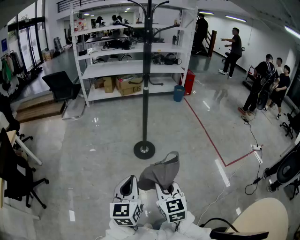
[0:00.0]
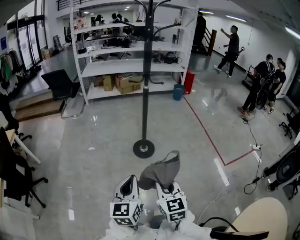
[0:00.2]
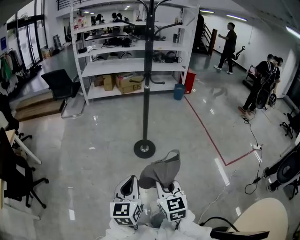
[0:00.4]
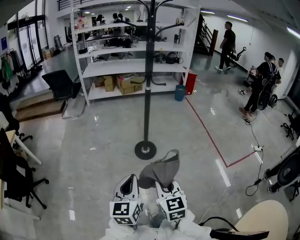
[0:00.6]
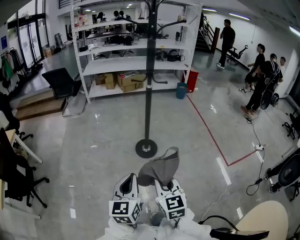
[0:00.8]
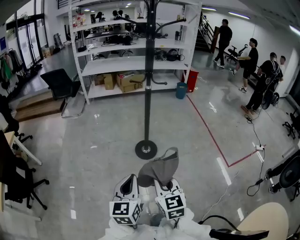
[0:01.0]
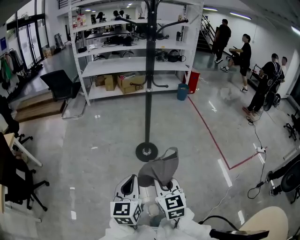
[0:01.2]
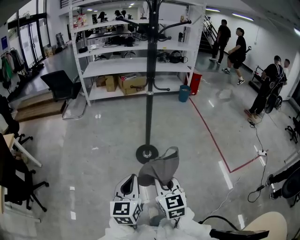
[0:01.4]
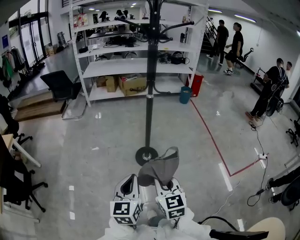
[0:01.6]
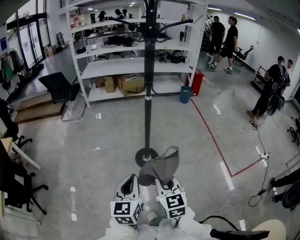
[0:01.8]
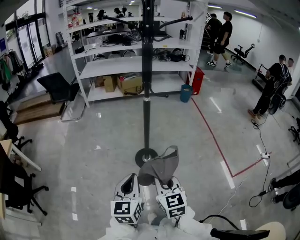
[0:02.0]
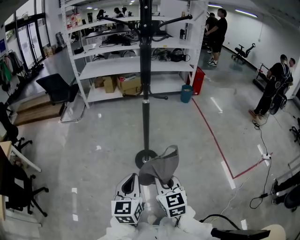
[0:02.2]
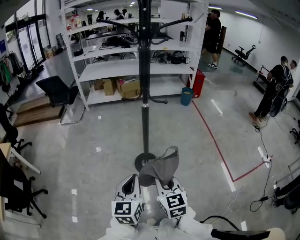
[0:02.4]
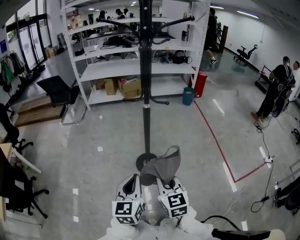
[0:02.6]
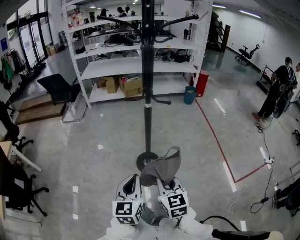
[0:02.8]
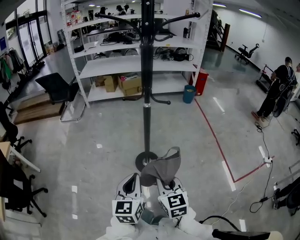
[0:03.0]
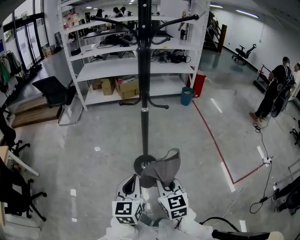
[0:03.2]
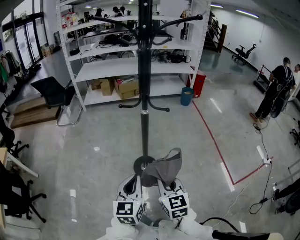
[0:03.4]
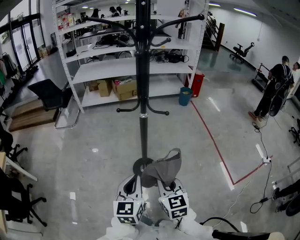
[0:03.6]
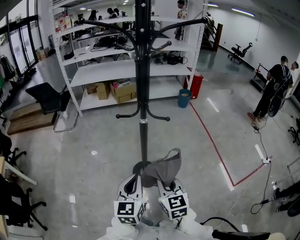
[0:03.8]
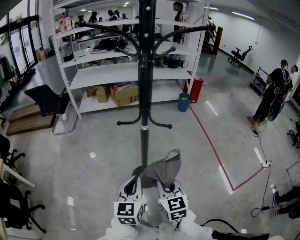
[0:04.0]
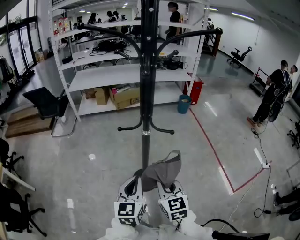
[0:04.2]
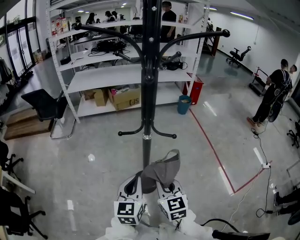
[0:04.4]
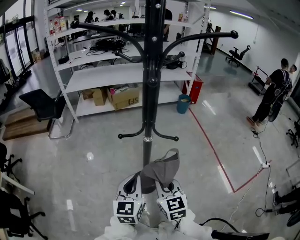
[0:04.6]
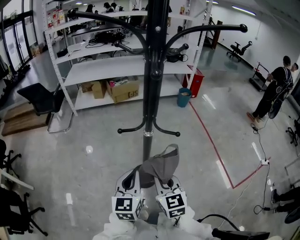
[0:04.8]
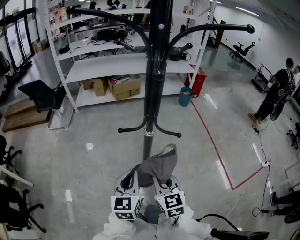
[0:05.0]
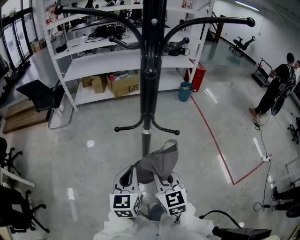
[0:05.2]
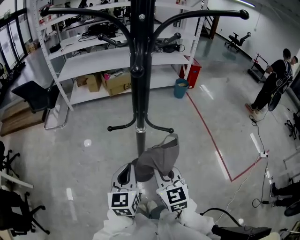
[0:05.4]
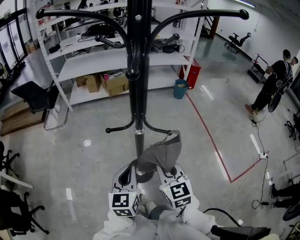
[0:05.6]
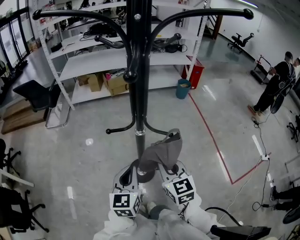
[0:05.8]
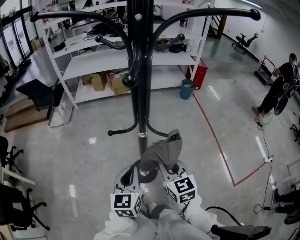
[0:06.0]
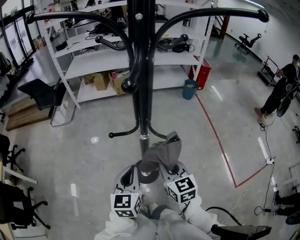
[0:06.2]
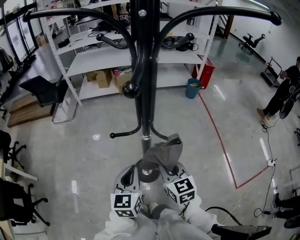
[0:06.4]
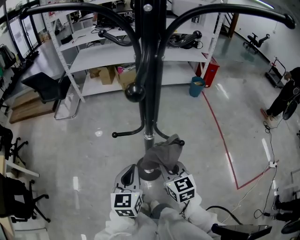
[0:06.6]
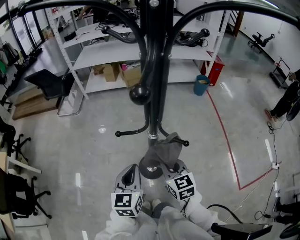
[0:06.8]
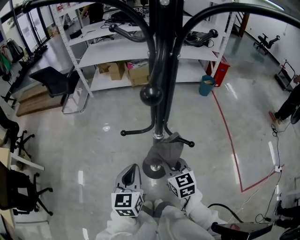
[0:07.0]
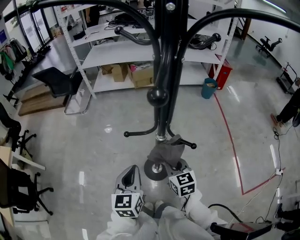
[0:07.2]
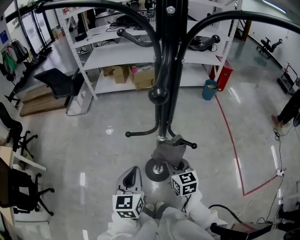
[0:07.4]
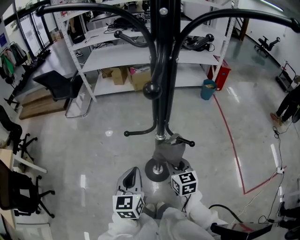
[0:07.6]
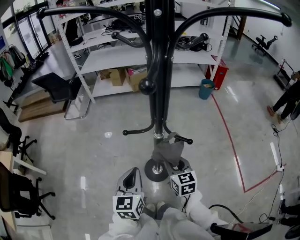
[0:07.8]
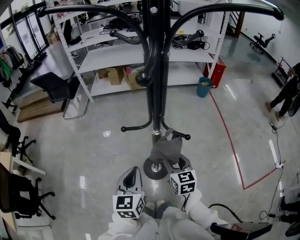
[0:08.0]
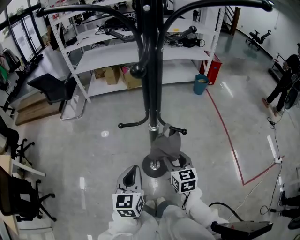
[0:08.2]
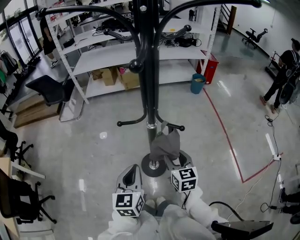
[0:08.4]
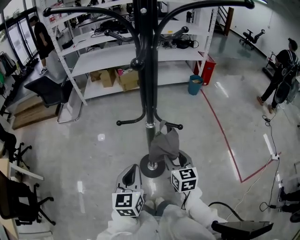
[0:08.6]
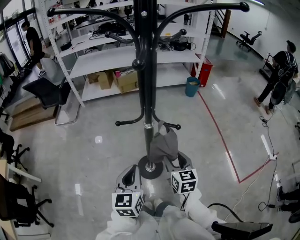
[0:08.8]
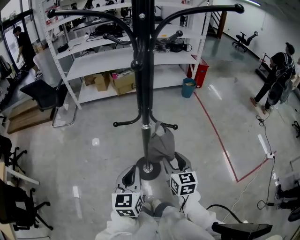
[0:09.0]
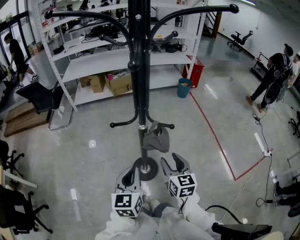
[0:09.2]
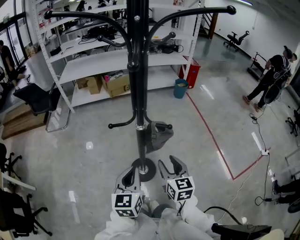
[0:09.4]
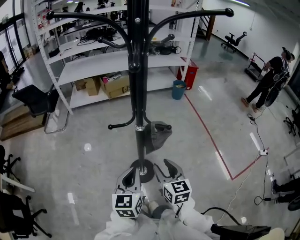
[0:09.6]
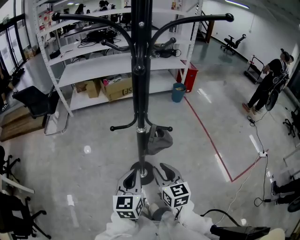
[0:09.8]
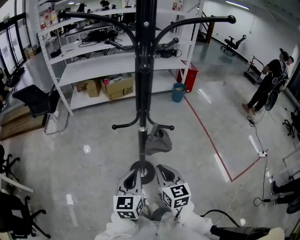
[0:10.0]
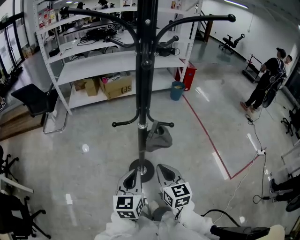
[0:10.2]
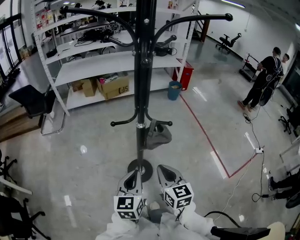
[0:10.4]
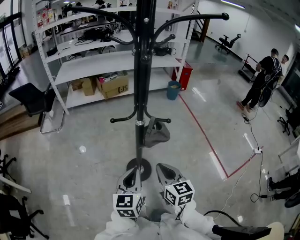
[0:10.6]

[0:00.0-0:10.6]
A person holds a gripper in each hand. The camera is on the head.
0:00.0 to 0:01.6: The grippers both shift forward by about 15 cm.
0:01.6 to 0:03.0: The two grippers go about 15 cm forward.
0:03.0 to 0:04.6: Both grippers move forward, some 20 cm.
0:04.6 to 0:06.0: The right gripper travels forward by some 5 cm, while the left gripper changes place by approximately 5 cm.
0:06.0 to 0:07.6: The left gripper moves approximately 5 cm. Meanwhile the right gripper goes approximately 10 cm downward.
0:07.6 to 0:09.0: The right gripper travels backward by approximately 5 cm, and opens its fingers. Meanwhile the left gripper changes place by about 5 cm.
0:09.0 to 0:10.6: The right gripper shifts about 10 cm backward, and closes up.

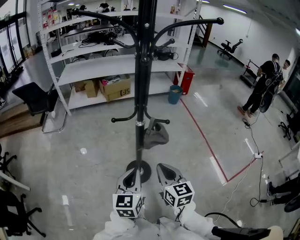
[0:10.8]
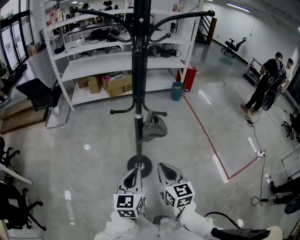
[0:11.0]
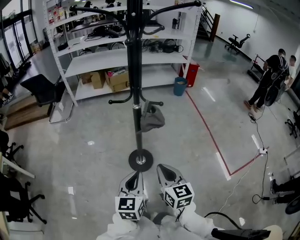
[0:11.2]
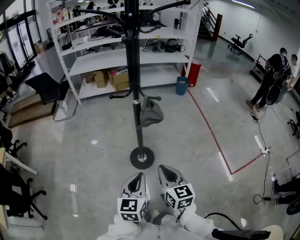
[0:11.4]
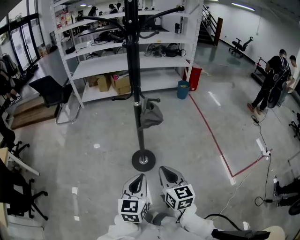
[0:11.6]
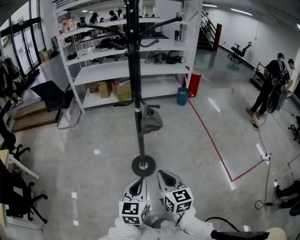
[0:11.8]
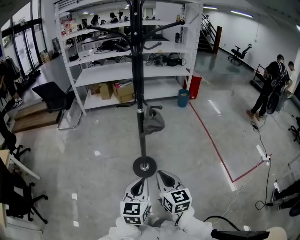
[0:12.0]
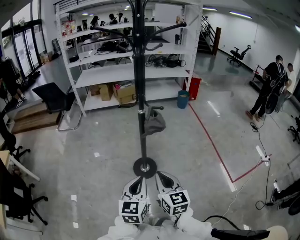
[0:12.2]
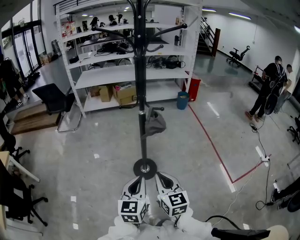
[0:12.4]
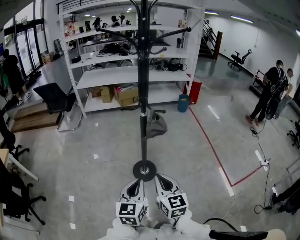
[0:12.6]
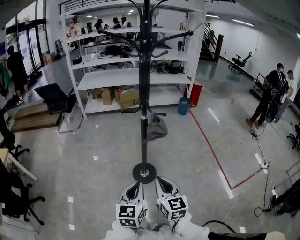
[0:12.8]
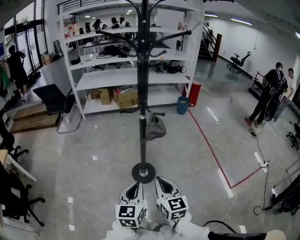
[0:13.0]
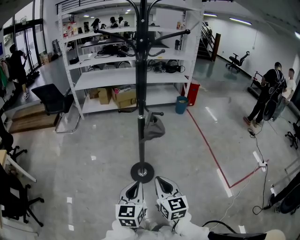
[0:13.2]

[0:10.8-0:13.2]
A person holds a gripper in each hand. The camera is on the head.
0:10.8 to 0:12.0: Both grippers move backward, some 15 cm.
0:12.0 to 0:13.2: There are only small adjustments of the grippers.

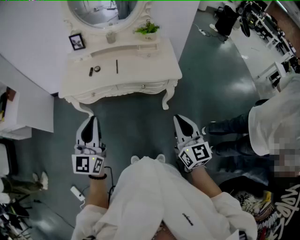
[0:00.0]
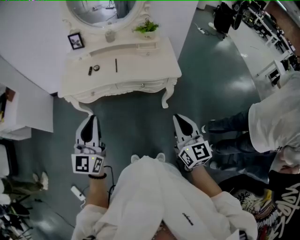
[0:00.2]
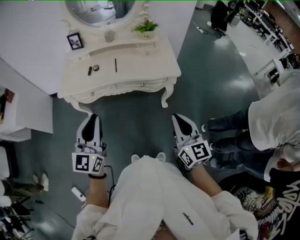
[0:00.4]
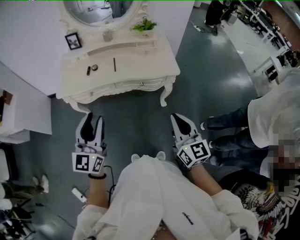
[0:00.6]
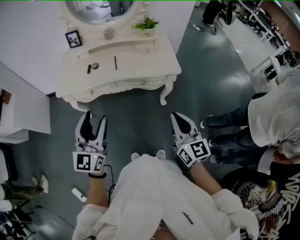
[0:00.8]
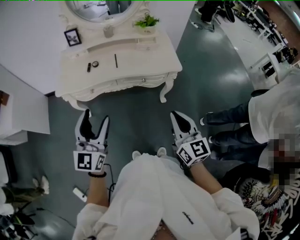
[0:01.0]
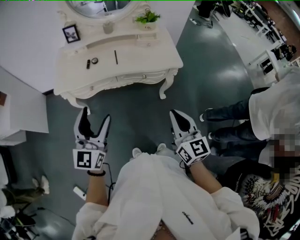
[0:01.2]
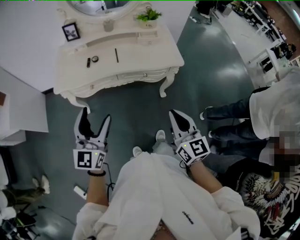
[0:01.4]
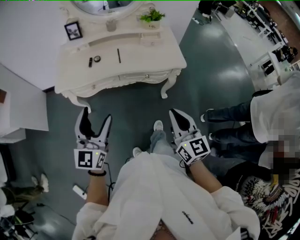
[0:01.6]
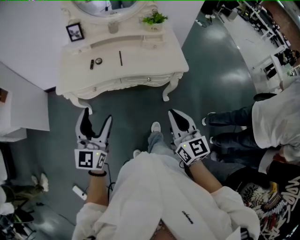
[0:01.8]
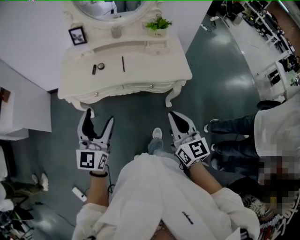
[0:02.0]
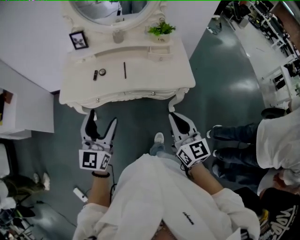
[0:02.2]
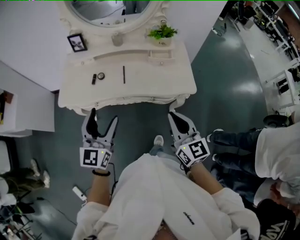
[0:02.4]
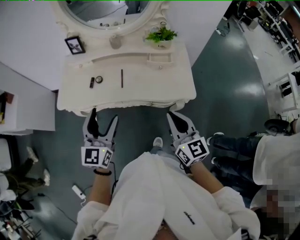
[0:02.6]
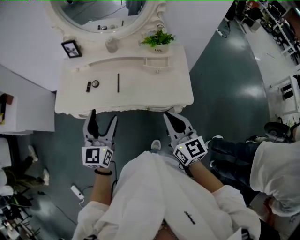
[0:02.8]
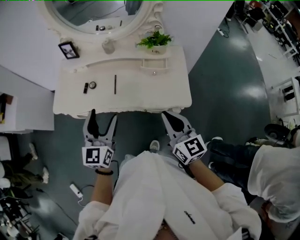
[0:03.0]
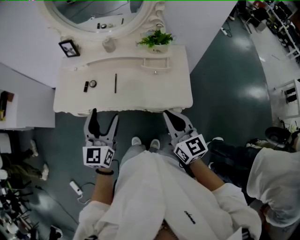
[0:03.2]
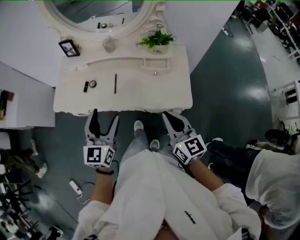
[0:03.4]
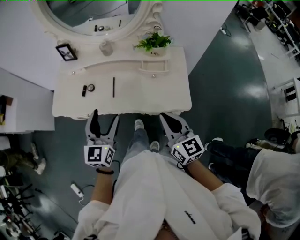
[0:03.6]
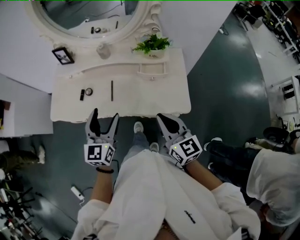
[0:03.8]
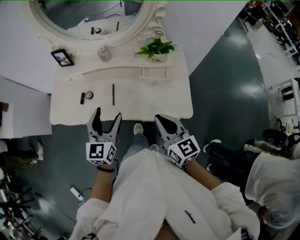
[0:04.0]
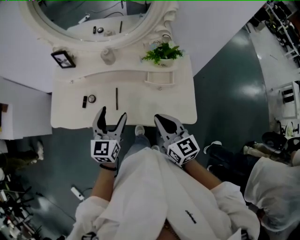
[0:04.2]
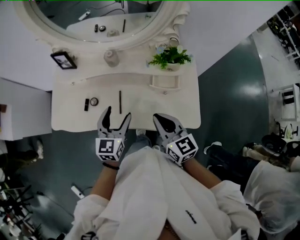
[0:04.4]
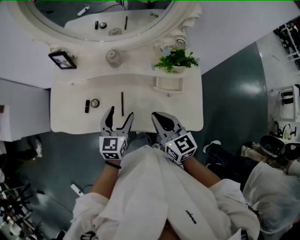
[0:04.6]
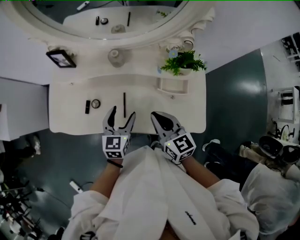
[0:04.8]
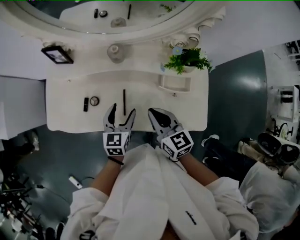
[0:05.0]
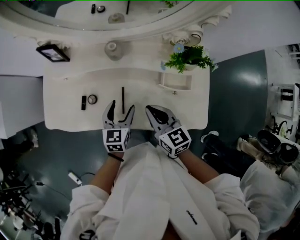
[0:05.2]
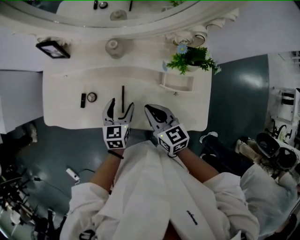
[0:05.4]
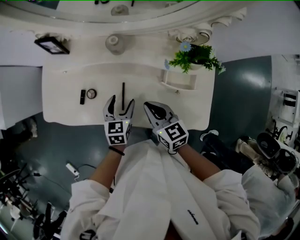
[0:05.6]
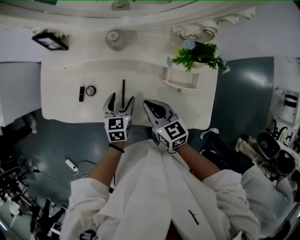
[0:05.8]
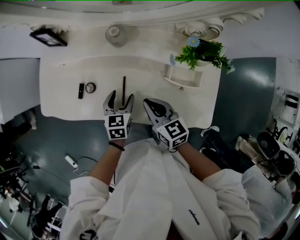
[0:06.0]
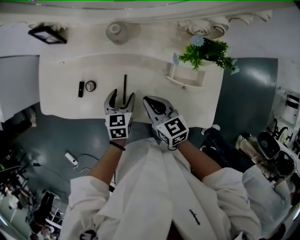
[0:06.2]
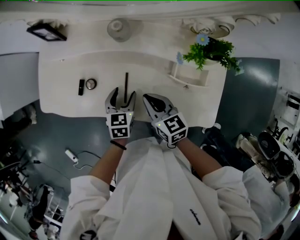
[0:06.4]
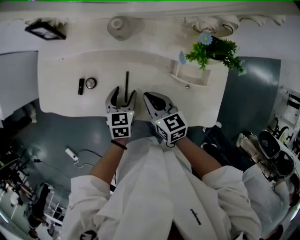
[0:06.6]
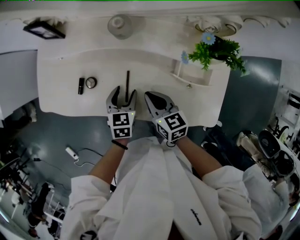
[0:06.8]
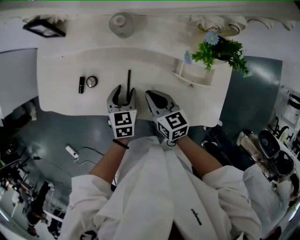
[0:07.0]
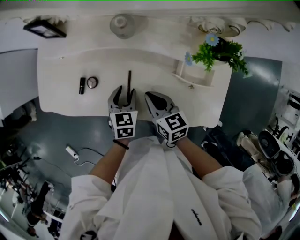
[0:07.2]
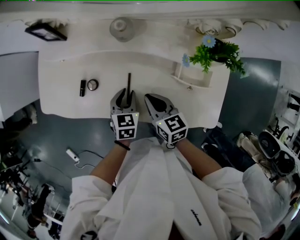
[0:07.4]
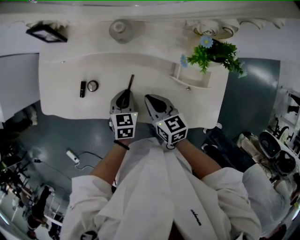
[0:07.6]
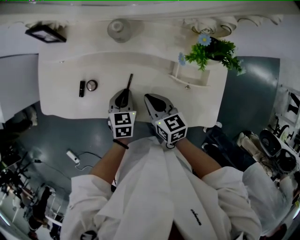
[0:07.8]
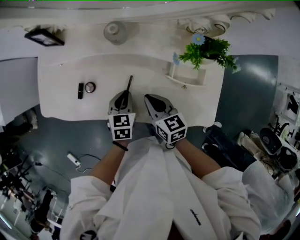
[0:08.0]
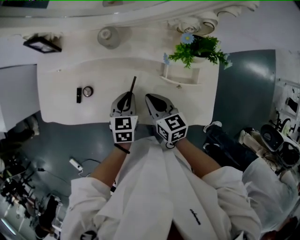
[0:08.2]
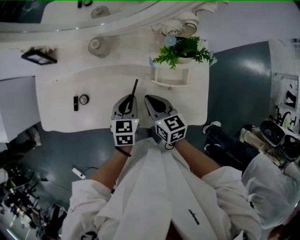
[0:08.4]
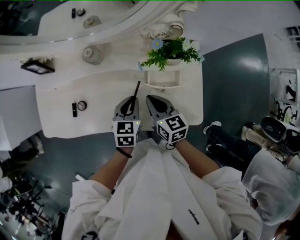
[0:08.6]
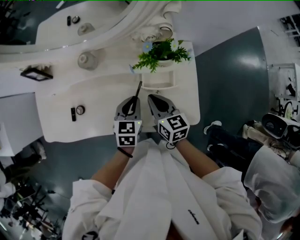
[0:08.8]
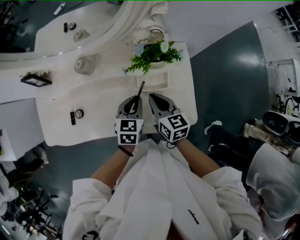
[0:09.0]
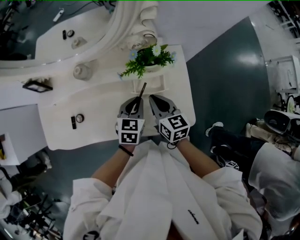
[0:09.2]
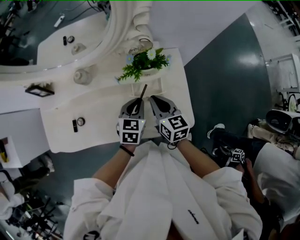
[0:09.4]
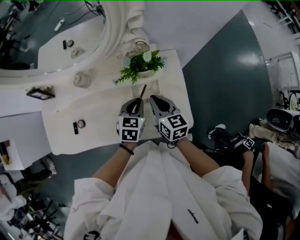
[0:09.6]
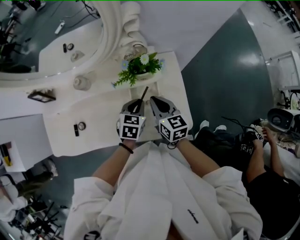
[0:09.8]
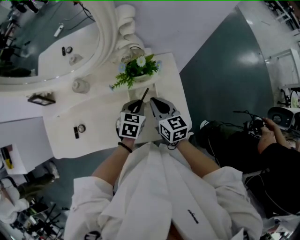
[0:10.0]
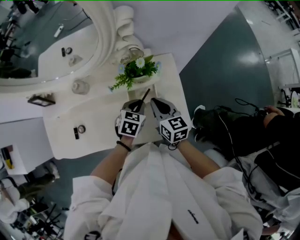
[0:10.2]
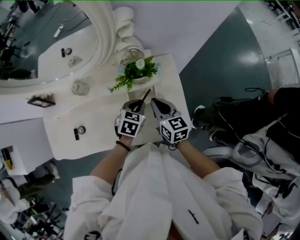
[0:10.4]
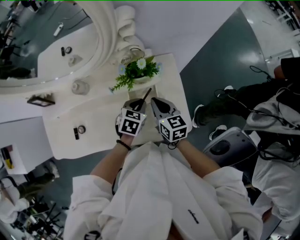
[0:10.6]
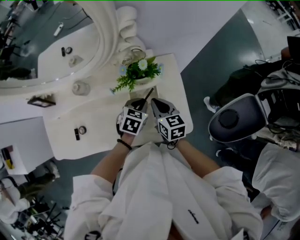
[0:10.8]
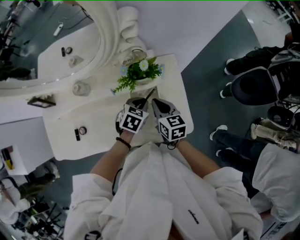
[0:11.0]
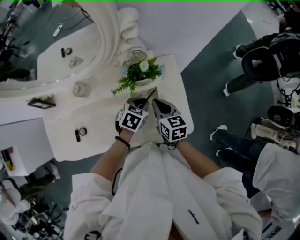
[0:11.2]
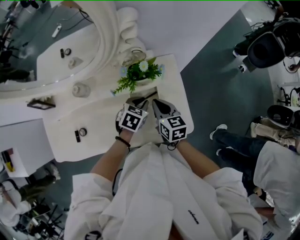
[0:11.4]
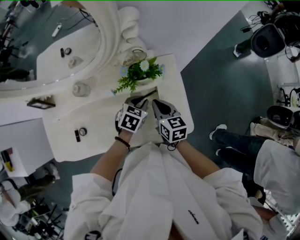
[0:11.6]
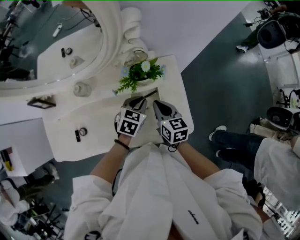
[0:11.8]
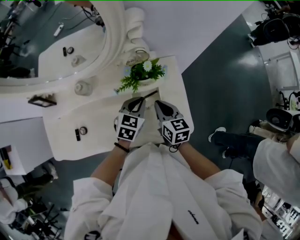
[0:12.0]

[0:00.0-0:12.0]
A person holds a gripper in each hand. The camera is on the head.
0:00.0 to 0:01.6: The right gripper heads to the left, covering about 10 cm. Meanwhile the left gripper is displaced to the left by about 5 cm, and opens up.
0:01.6 to 0:03.0: The grippers both shift forward and to the right by approximately 30 cm.
0:03.0 to 0:04.4: The right gripper goes roughly 20 cm forward. Meanwhile the left gripper shifts some 20 cm forward and downward.
0:04.4 to 0:06.0: The left gripper is displaced downward by some 20 cm, and turns by approximately 30 degrees, while the right gripper goes about 20 cm downward, forward and to the left.
0:06.0 to 0:07.6: The left gripper closes up.
0:07.6 to 0:09.0: The grippers both shift to the right and upward by about 20 cm. The right gripper swivels roughly 20 degrees. The left gripper swivels roughly 20 degrees.
0:09.0 to 0:10.4: Both grippers move to the right, roughly 5 cm. The left gripper rotates about 20 degrees.
0:10.4 to 0:12.0: The grippers make only small movements.
